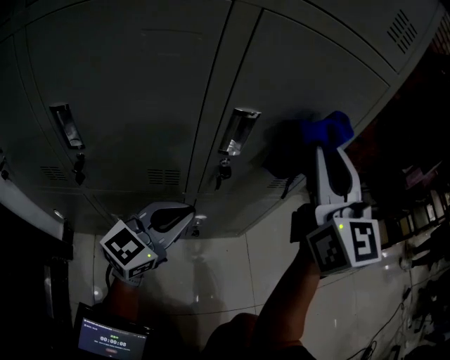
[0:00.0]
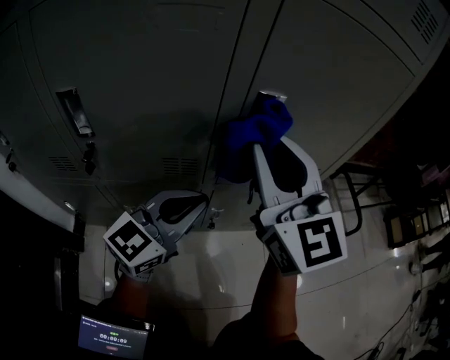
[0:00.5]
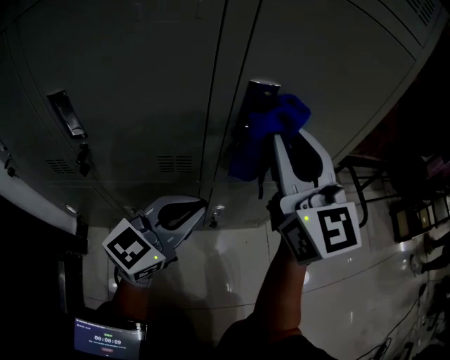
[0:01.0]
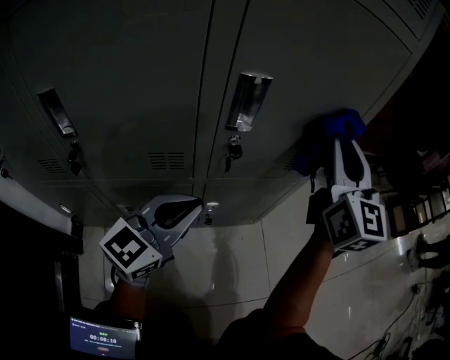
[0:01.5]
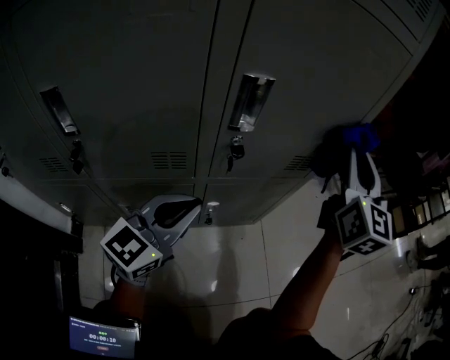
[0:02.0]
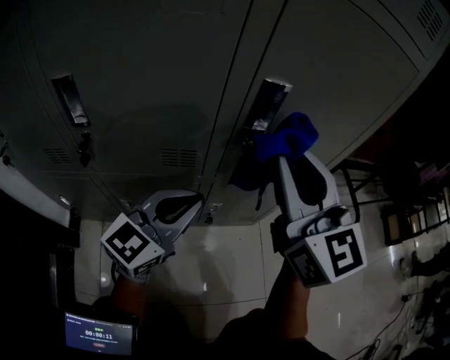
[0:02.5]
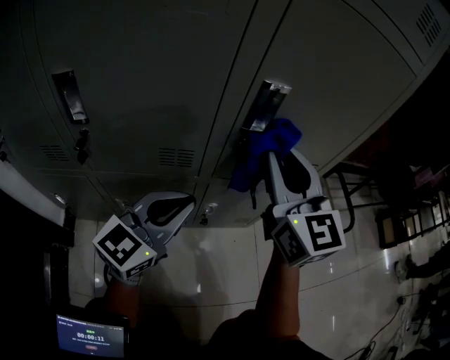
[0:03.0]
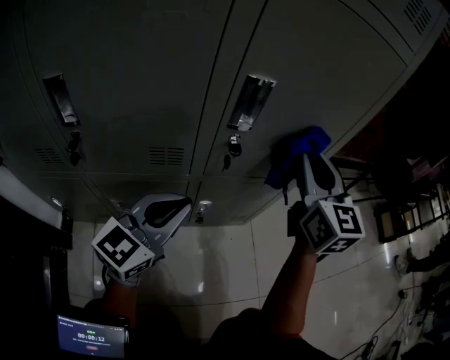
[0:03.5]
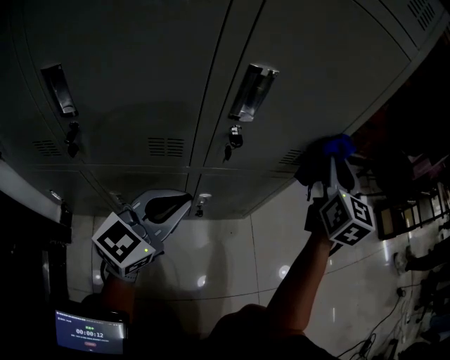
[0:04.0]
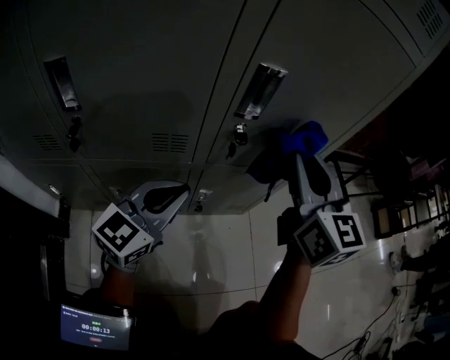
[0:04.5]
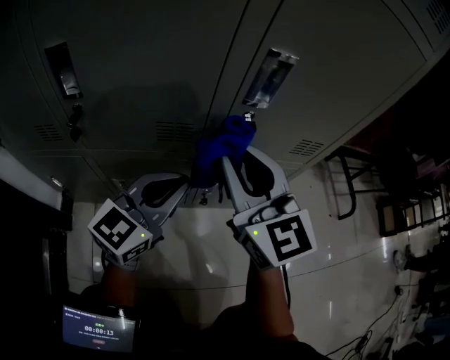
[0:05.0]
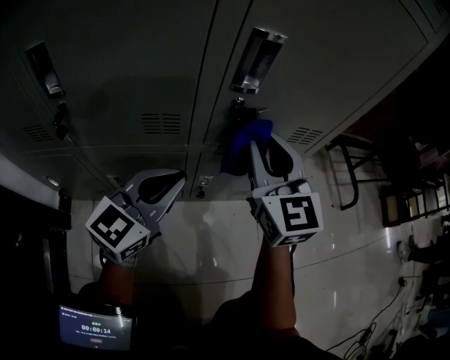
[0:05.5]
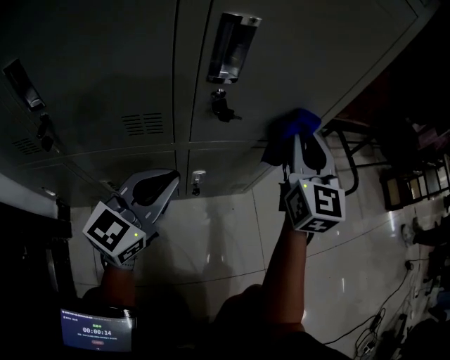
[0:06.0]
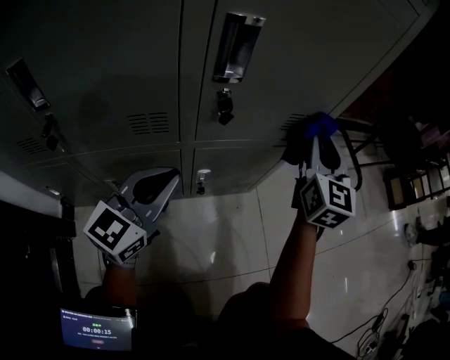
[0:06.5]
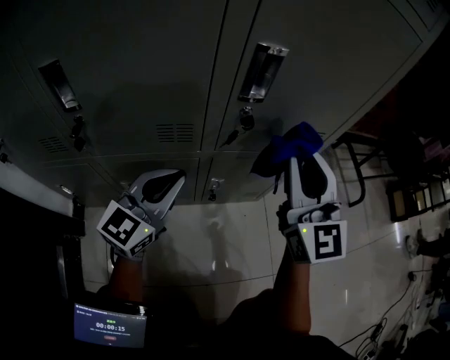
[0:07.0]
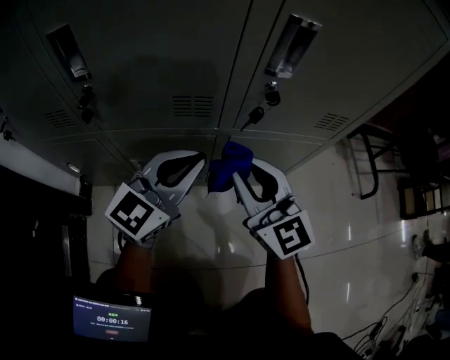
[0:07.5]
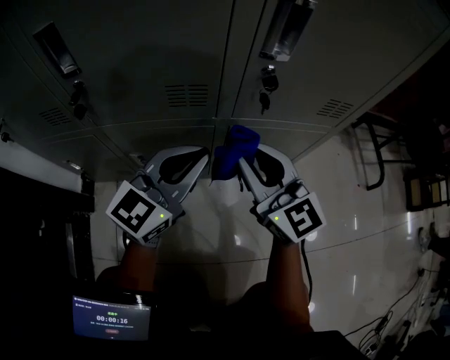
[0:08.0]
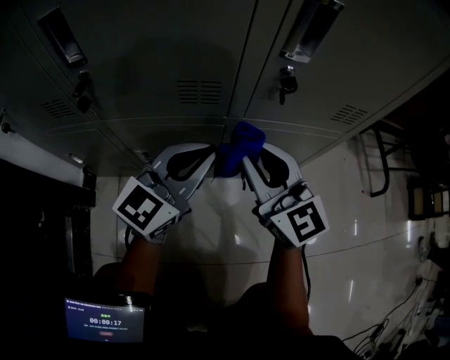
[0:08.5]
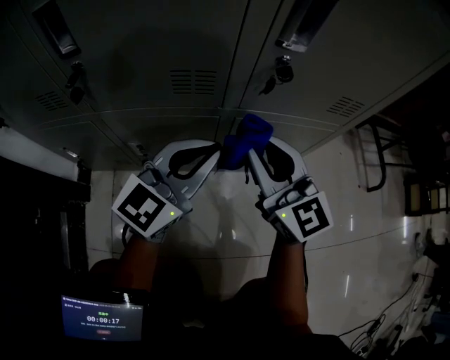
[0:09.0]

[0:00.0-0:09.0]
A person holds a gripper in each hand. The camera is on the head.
0:00.0 to 0:02.0: The right gripper heads to the right, downward and forward, covering approximately 15 cm.
0:02.0 to 0:04.5: The right gripper moves left and right over approximately 20 cm, changing direction 2 times, and rotates some 20 degrees.
0:04.5 to 0:07.0: The right gripper goes left and right, about 25 cm each way, reversing 2 times.
0:07.0 to 0:09.0: The right gripper is displaced downward and to the left by some 15 cm, and rotates roughly 30 degrees.

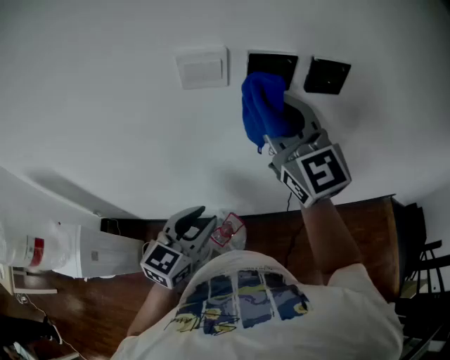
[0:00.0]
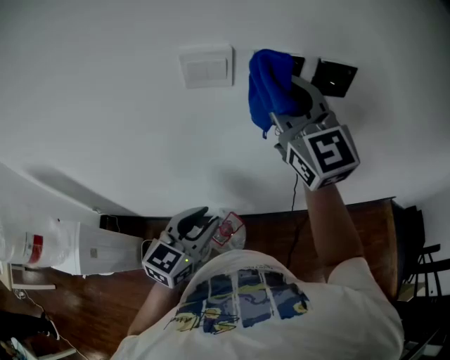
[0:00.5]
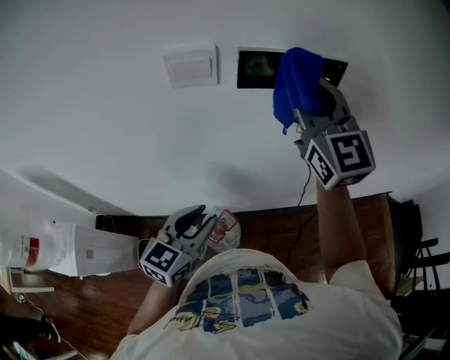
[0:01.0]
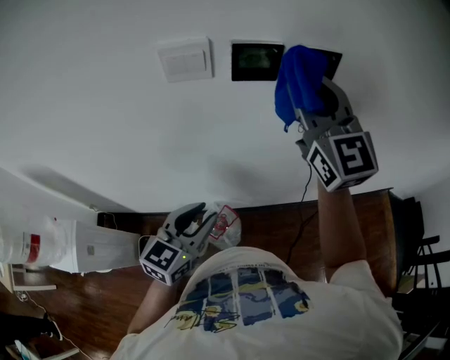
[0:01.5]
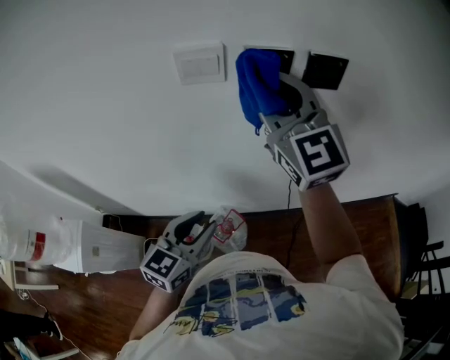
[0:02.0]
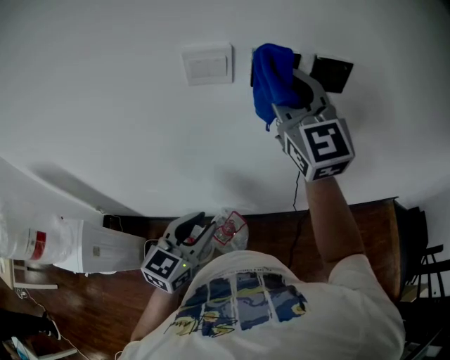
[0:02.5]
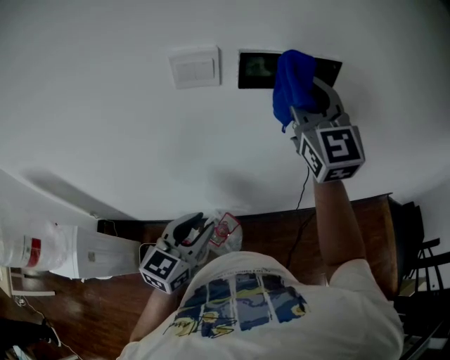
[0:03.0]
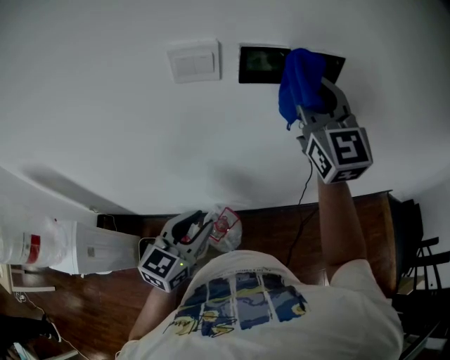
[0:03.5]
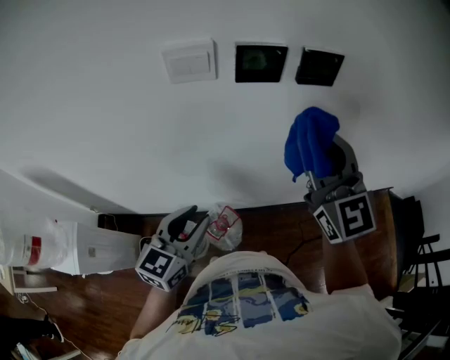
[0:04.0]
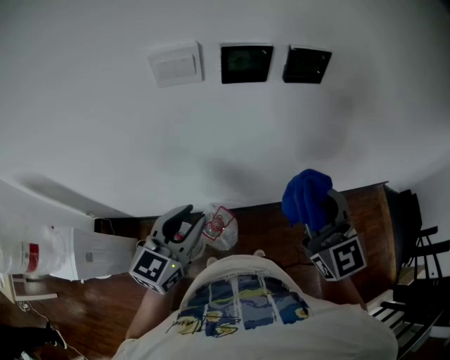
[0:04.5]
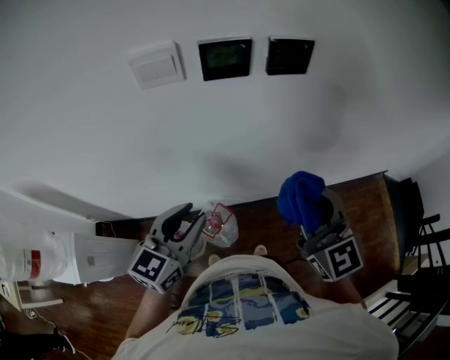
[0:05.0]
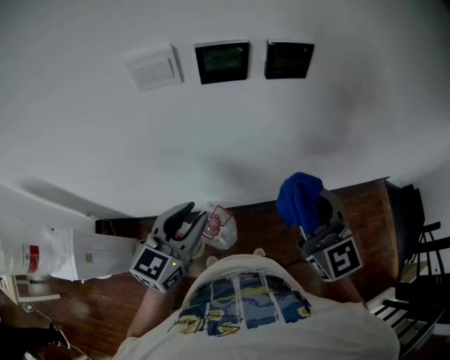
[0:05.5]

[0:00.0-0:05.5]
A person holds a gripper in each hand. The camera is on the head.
0:00.0 to 0:02.0: The right gripper travels to the right and back again, some 10 cm each way.
0:02.0 to 0:03.5: The right gripper travels to the right by about 10 cm.
0:03.5 to 0:05.5: The right gripper moves backward, downward and to the right, about 20 cm, while the left gripper ends up some 5 cm from where it was.

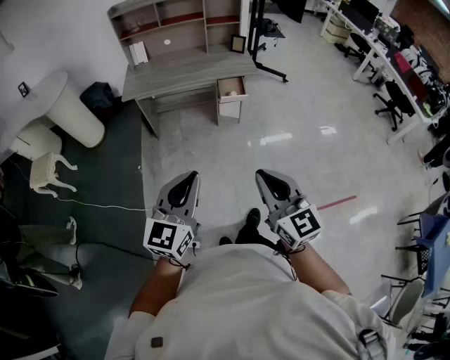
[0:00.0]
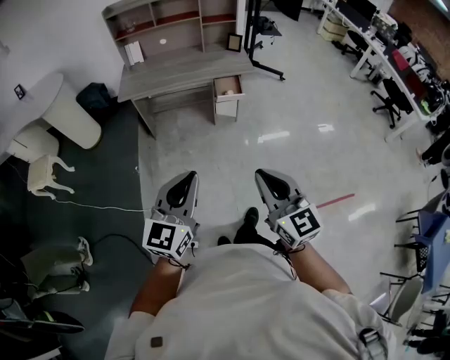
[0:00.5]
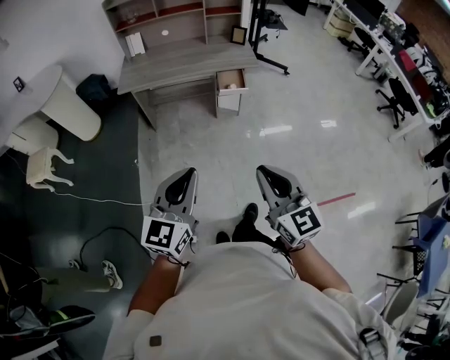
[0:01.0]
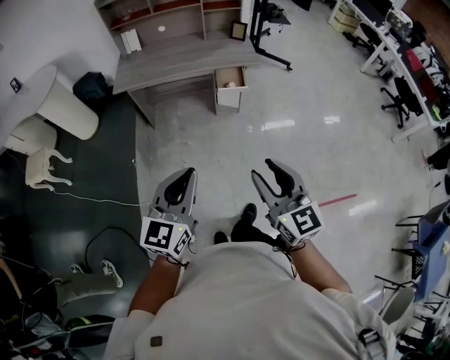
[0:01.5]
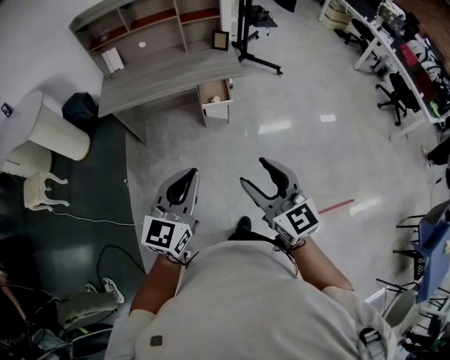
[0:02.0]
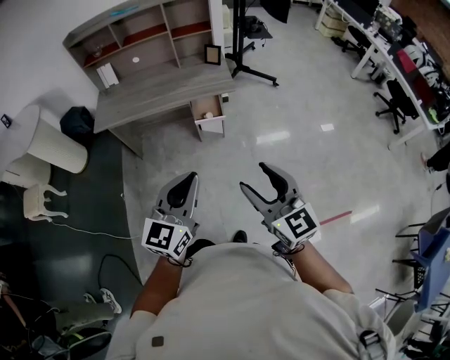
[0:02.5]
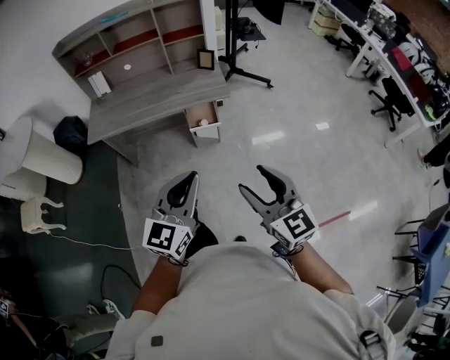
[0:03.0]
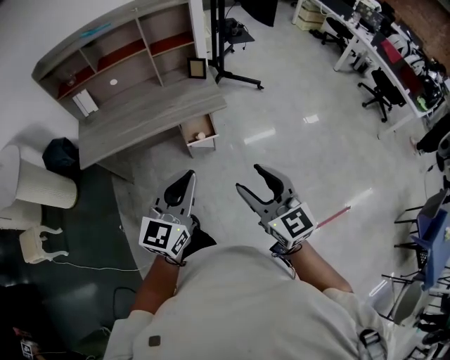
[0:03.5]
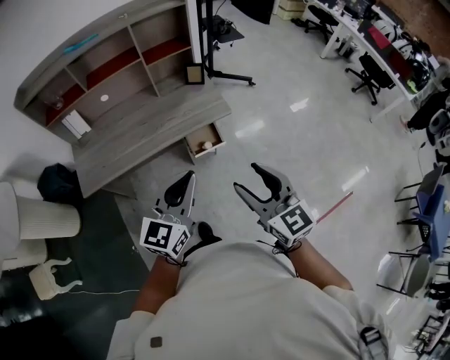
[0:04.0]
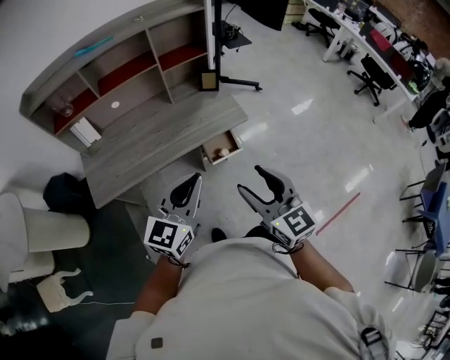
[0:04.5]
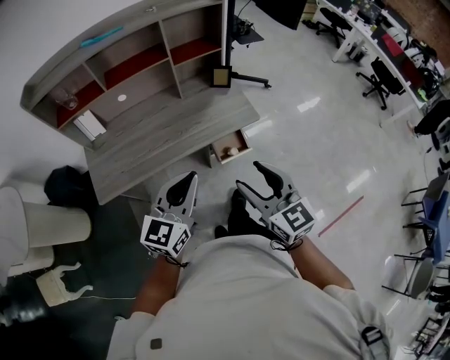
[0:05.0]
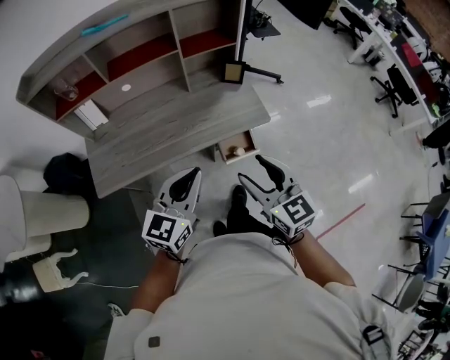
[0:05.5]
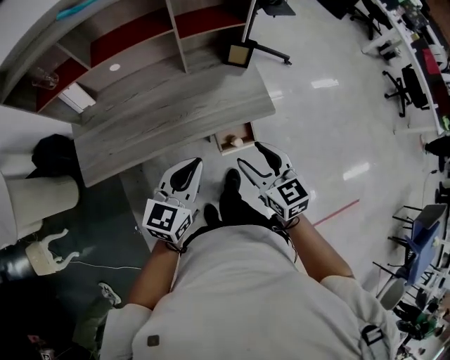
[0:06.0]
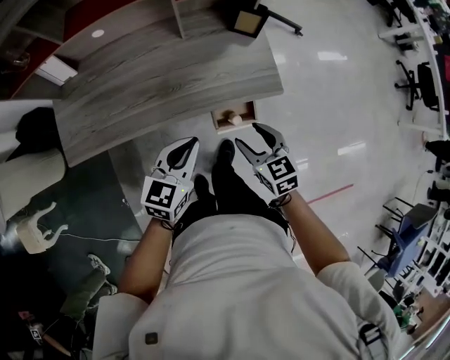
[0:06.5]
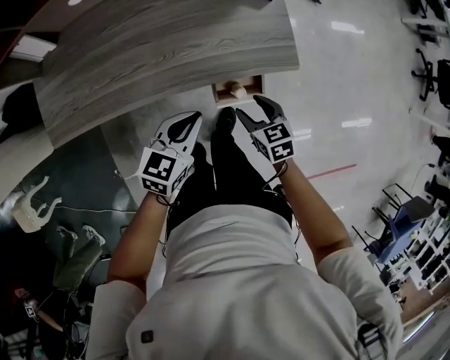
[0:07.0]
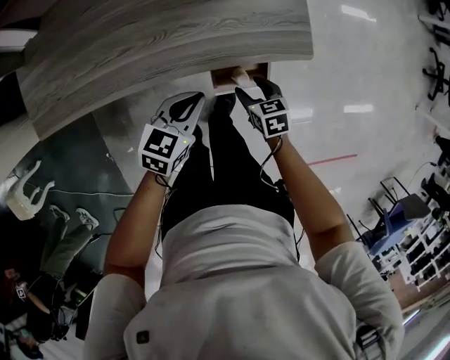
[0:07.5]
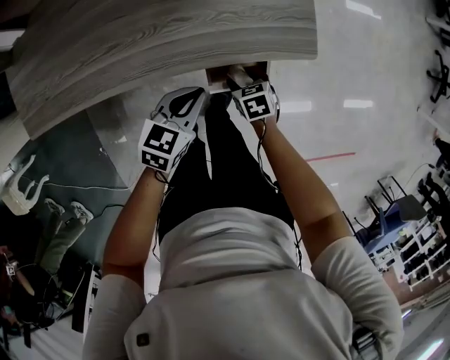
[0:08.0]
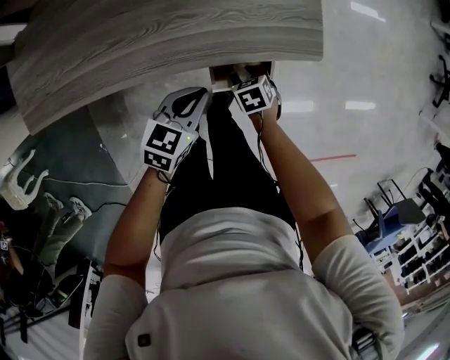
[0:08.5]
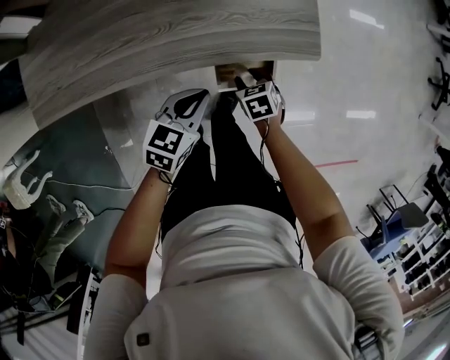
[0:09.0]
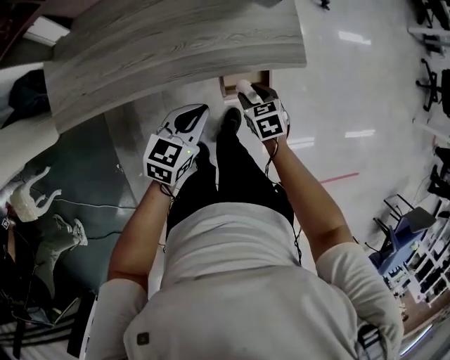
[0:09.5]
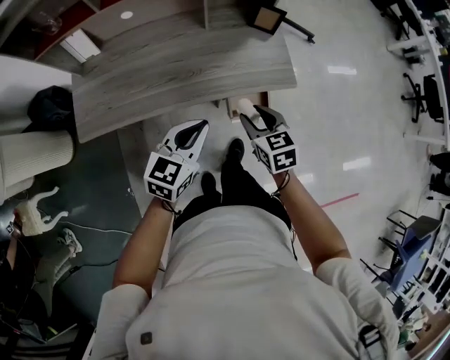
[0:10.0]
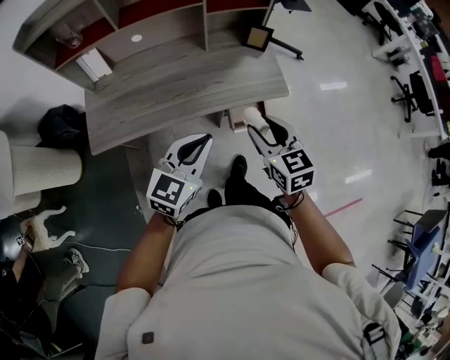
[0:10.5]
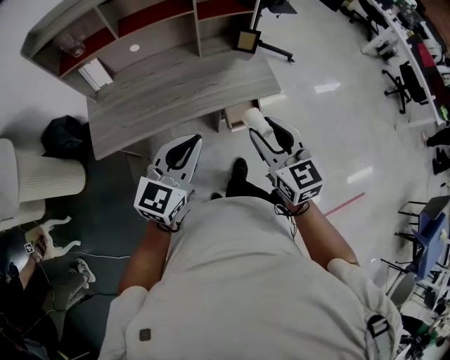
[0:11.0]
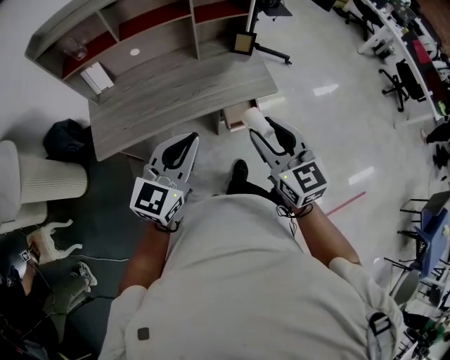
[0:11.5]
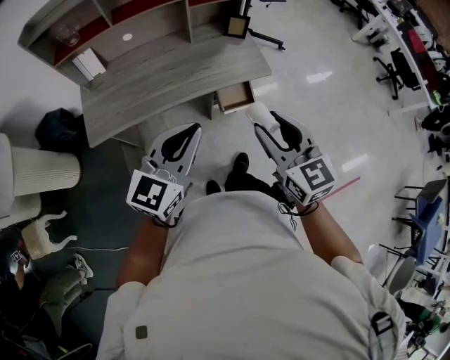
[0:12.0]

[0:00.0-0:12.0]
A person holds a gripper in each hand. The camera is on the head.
0:00.0 to 0:02.0: Both grippers move forward and to the right, roughly 25 cm. The right gripper opens.
0:02.0 to 0:04.0: The two grippers go about 30 cm forward.
0:04.0 to 0:06.0: The two grippers go about 30 cm forward, downward and to the left.
0:06.0 to 0:08.0: Both grippers travel together downward, approximately 40 cm. The left gripper rotates some 30 degrees. Meanwhile the right gripper tips its fingers downward by some 40 degrees.
0:08.0 to 0:10.0: Both grippers travel together upward, roughly 30 cm. The right gripper changes its angle by approximately 30 degrees. The left gripper swivels about 20 degrees.
0:10.0 to 0:12.0: The two grippers go approximately 30 cm upward and backward. The right gripper rotates about 30 degrees, while the left gripper swivels some 20 degrees.
